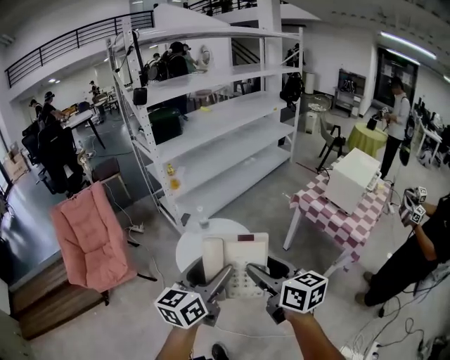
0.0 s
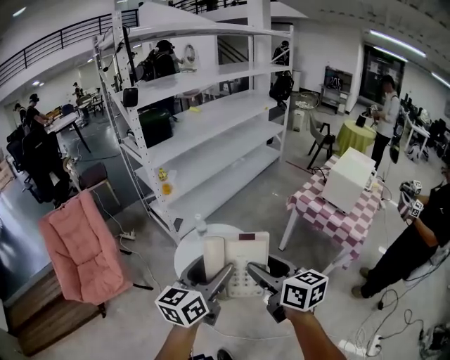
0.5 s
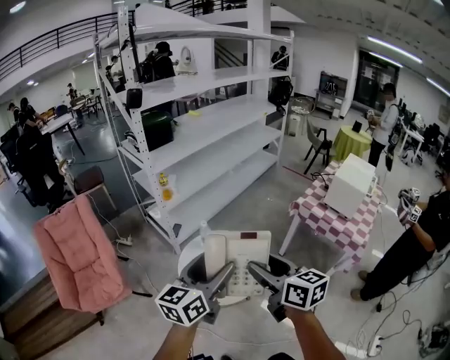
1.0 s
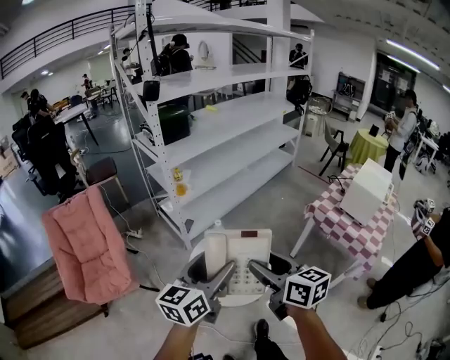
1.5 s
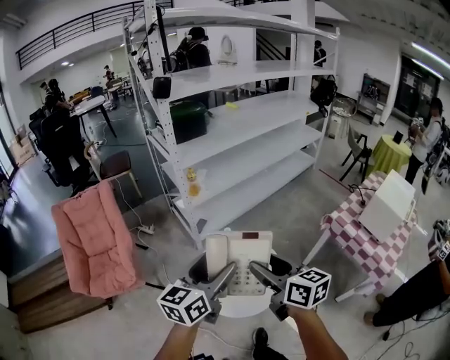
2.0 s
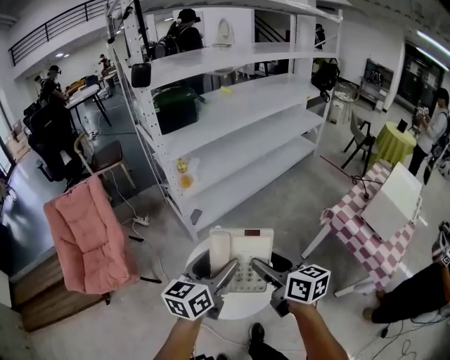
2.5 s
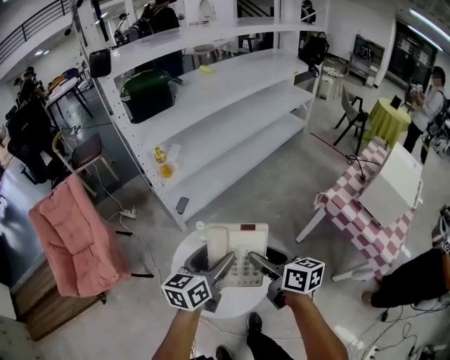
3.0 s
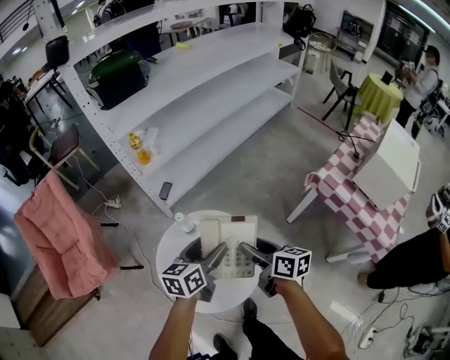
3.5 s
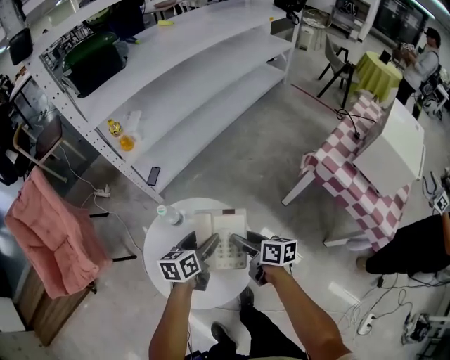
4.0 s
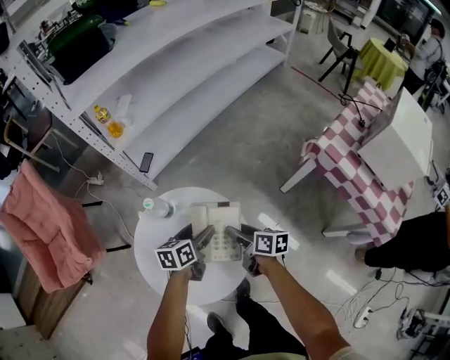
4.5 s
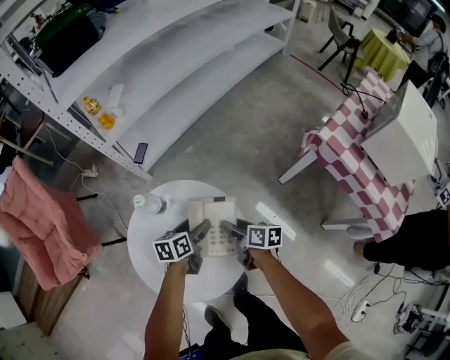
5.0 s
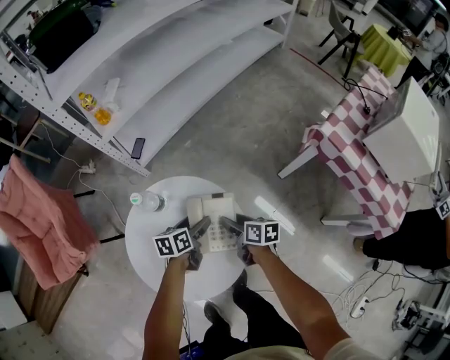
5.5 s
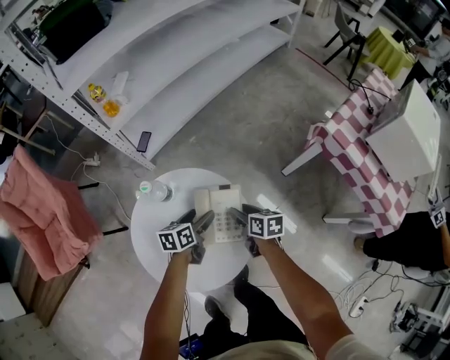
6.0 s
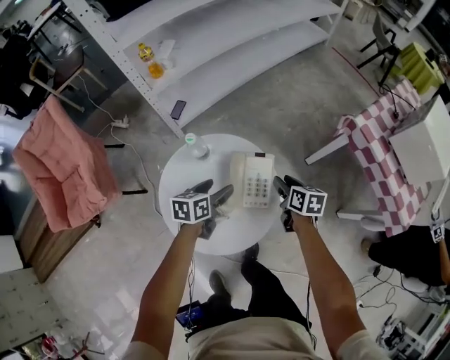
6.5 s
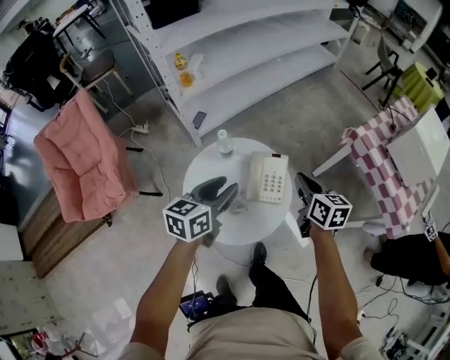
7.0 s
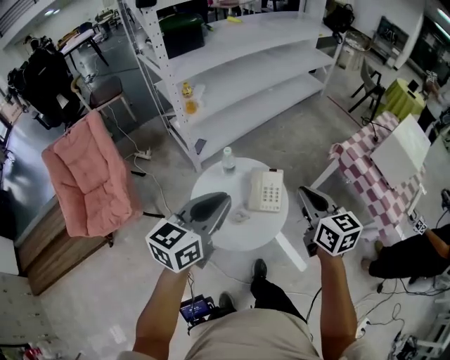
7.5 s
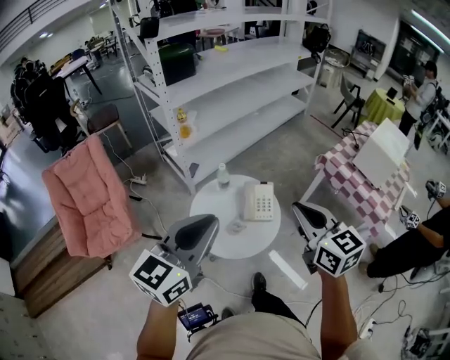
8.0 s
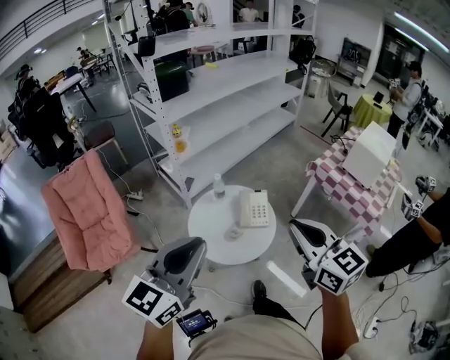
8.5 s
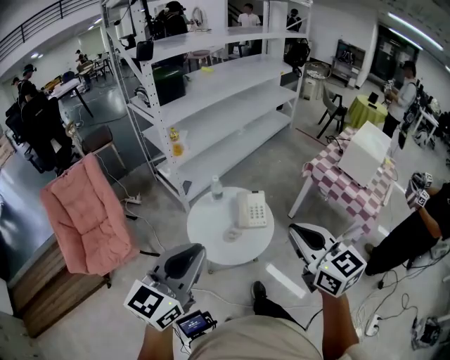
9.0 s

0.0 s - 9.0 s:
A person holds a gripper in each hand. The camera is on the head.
0.0 s - 2.0 s: The two grippers go approximately 25 cm forward and to the left.
2.0 s - 4.5 s: Both grippers move downward and forward, approximately 50 cm. The left gripper tilts its fingers approximately 30 degrees downward. The right gripper changes its angle by some 40 degrees.
4.5 s - 7.0 s: The right gripper moves upward, about 20 cm, changes its angle by about 30 degrees, and closes its fingers; the left gripper is displaced upward, backward and to the left by roughly 25 cm, swivels approximately 20 degrees, and closes up.
7.0 s - 9.0 s: Both grippers move backward and upward, some 40 cm. The left gripper swivels about 30 degrees, and closes up. Meanwhile the right gripper changes its angle by roughly 30 degrees.

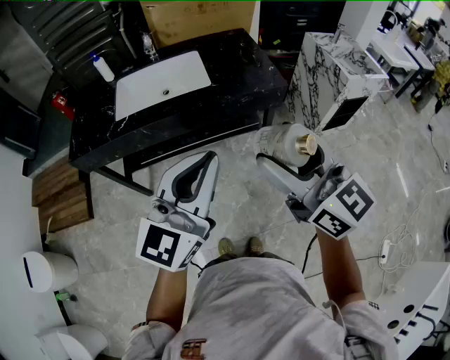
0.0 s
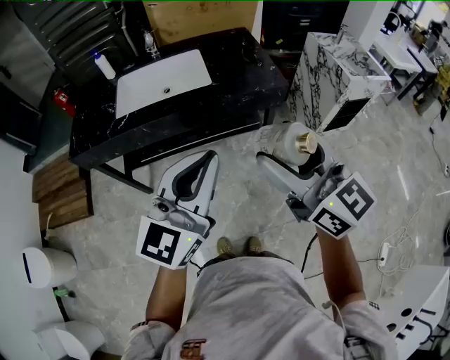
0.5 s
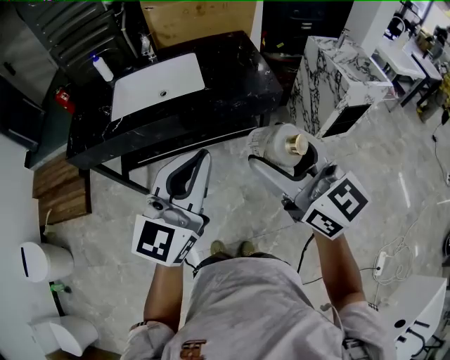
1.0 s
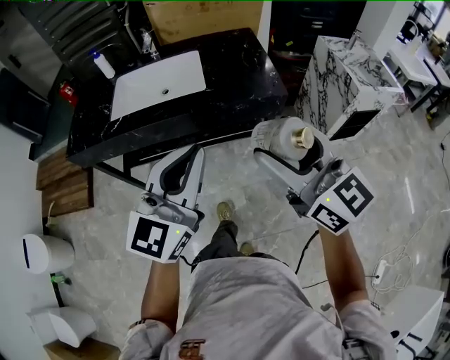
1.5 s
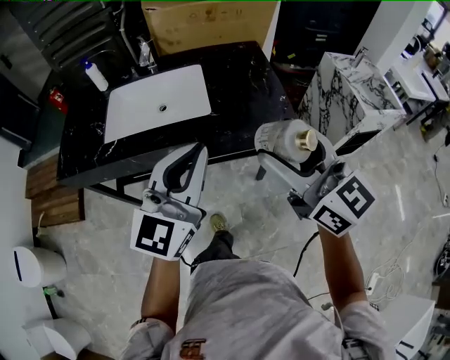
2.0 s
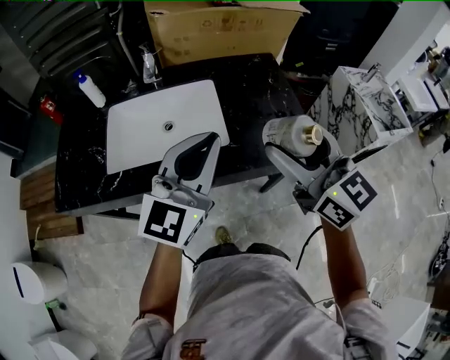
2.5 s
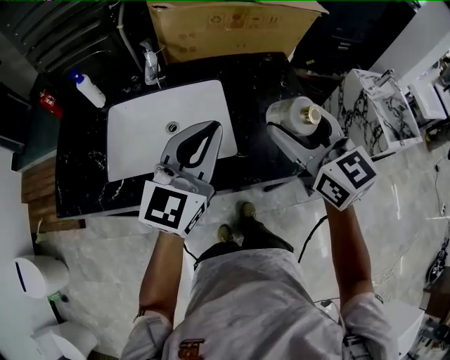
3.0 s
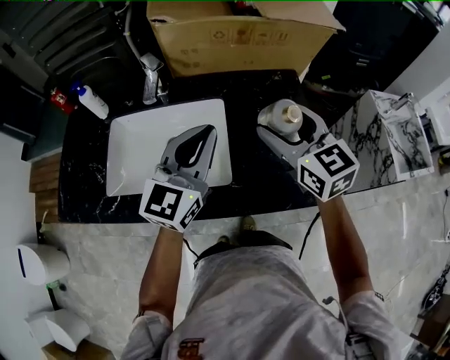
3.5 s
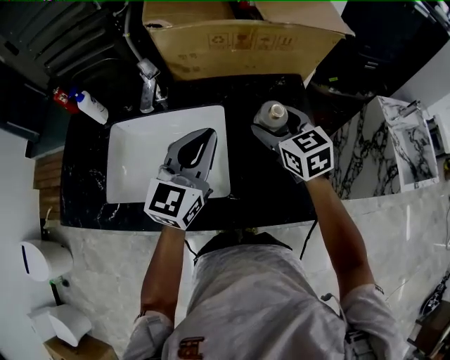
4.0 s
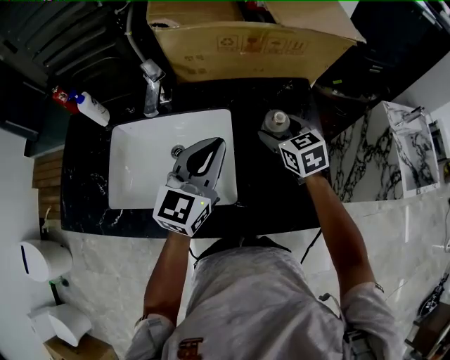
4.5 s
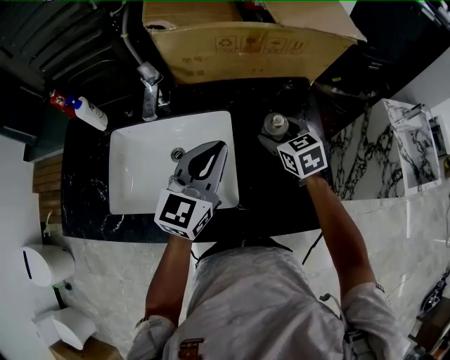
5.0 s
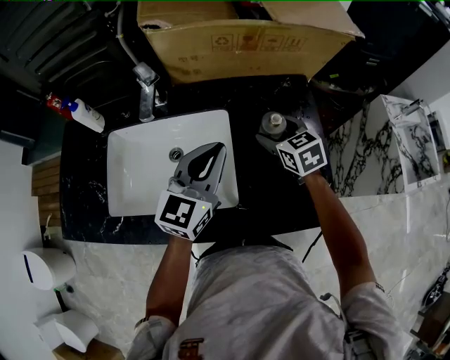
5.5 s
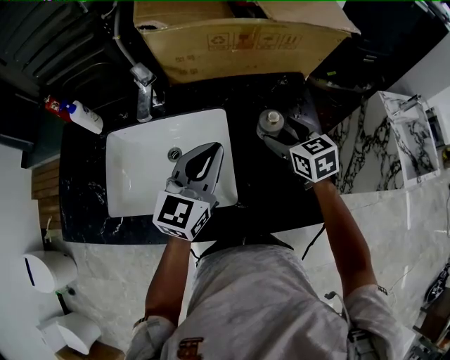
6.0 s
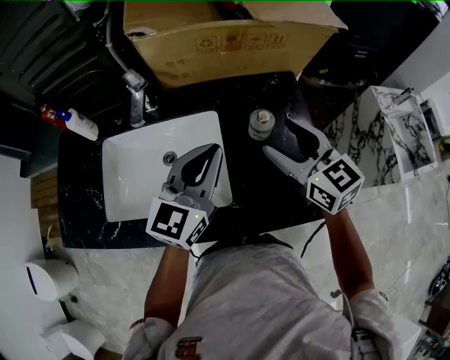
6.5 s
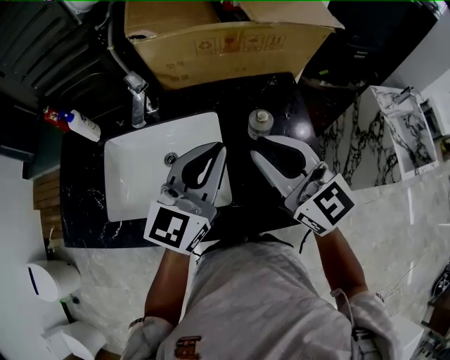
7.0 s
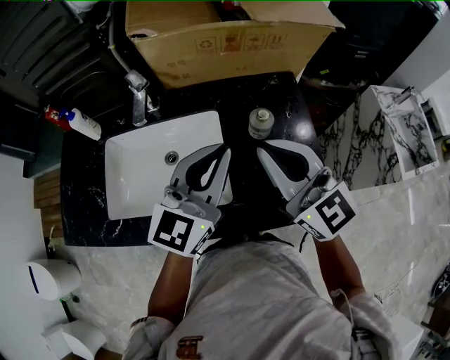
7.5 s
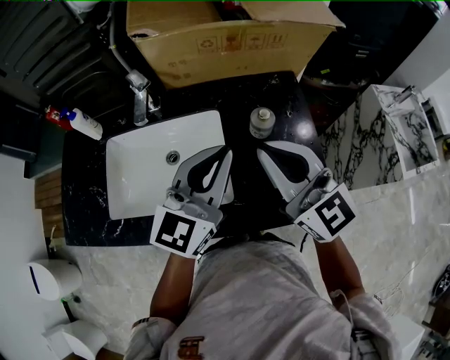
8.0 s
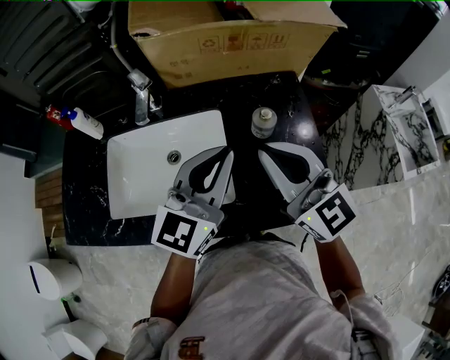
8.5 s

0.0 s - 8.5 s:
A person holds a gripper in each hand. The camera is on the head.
0.0 s - 2.0 s: Both grippers travel together forward, some 20 cm.
2.0 s - 4.0 s: Both grippers move forward, roughly 40 cm. The right gripper swivels roughly 30 degrees.
4.0 s - 6.5 s: The right gripper heads backward and upward, covering approximately 5 cm.
6.5 s - 8.5 s: The right gripper moves upward and backward, approximately 10 cm, and closes its fingers.

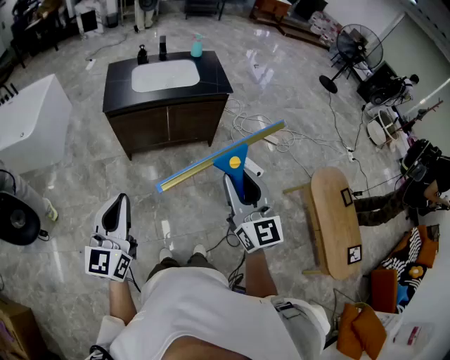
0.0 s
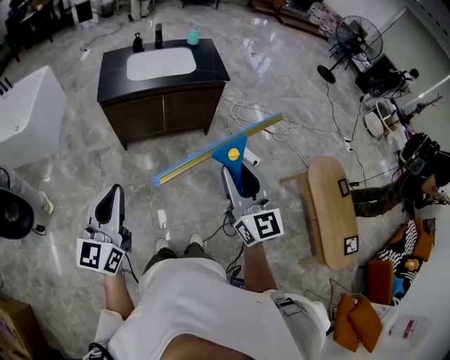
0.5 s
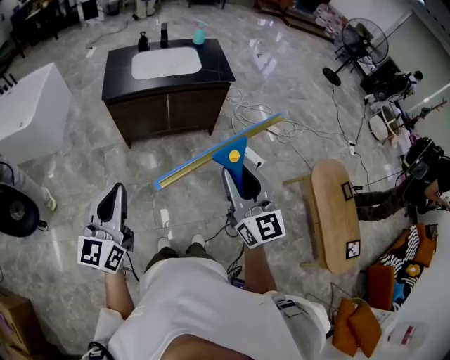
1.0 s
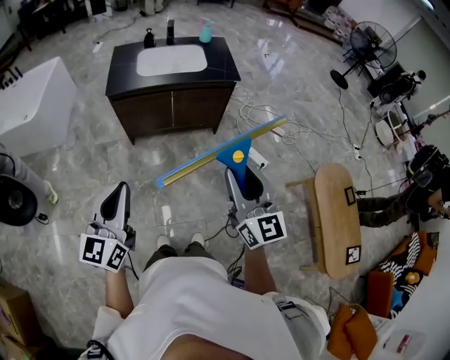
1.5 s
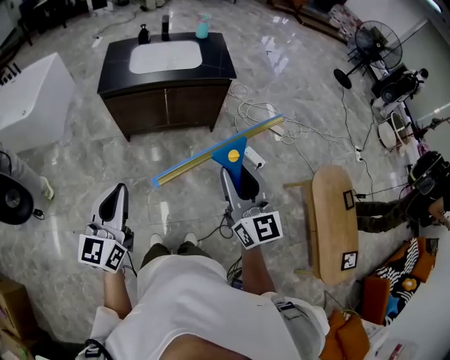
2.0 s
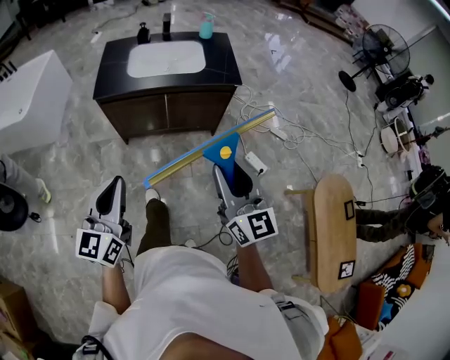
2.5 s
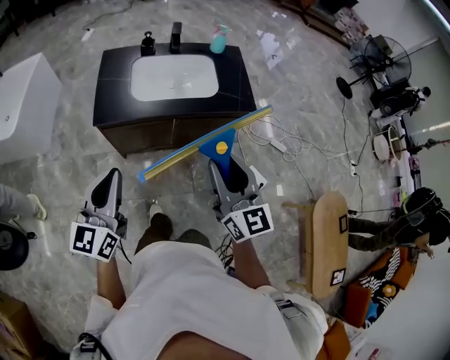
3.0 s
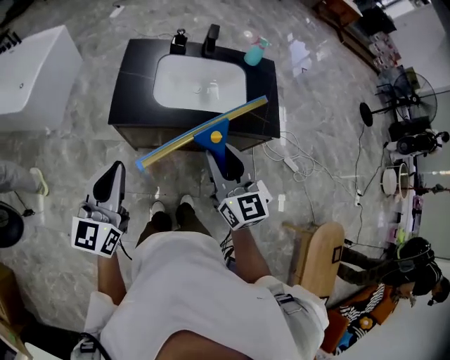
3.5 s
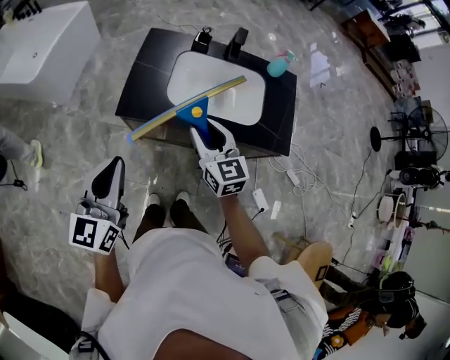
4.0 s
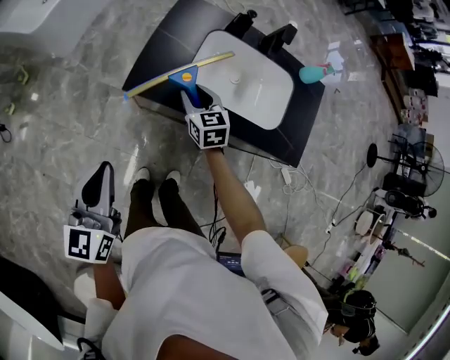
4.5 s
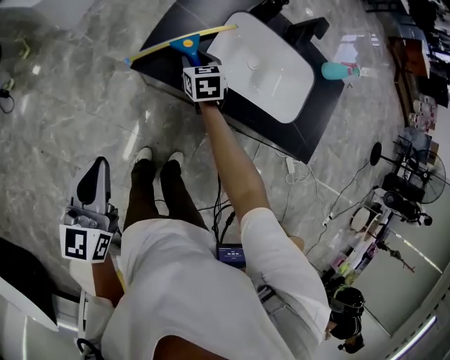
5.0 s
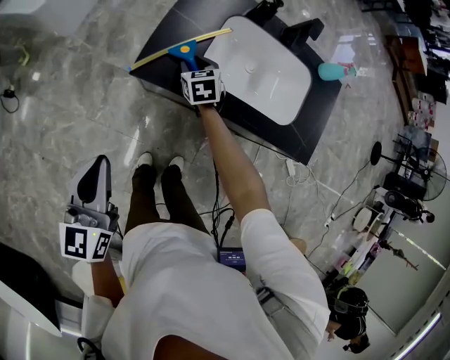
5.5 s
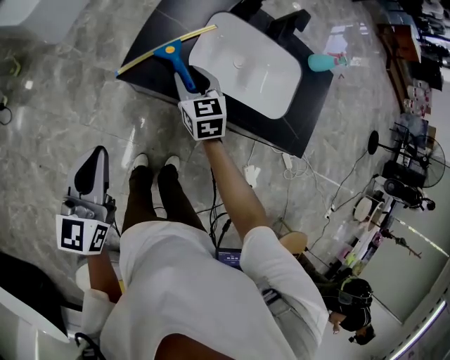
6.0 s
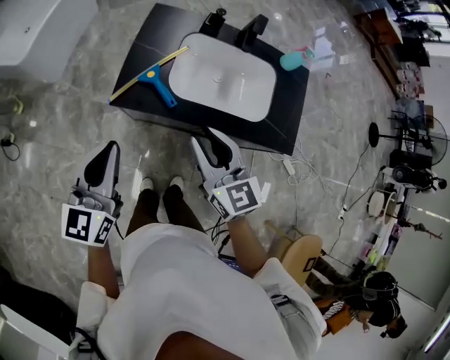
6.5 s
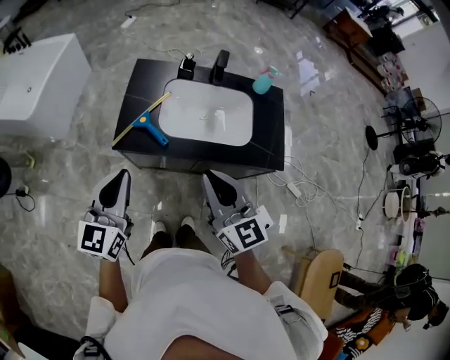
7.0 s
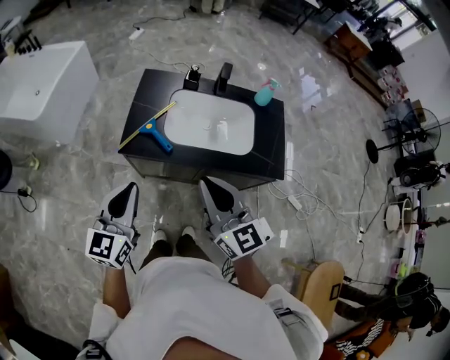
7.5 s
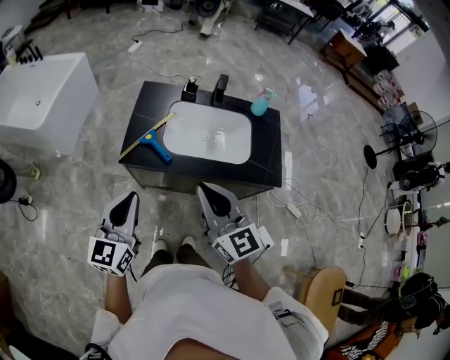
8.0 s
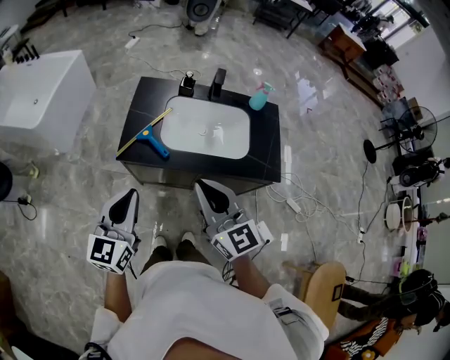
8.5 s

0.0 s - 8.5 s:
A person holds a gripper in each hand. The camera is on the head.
0.0 s - 2.0 s: Both grippers travel together to the right, about 5 cm.
2.0 s - 4.0 s: The pair of grippers is taken forward, about 60 cm. The right gripper swivels roughly 30 degrees.
4.0 s - 6.5 s: The right gripper travels downward and back again, approximately 25 cm each way. The left gripper travels forward by roughly 5 cm, and moves approximately 10 cm downward and comes back.
6.5 s - 8.5 s: The right gripper travels upward and backward by roughly 15 cm, and closes, while the left gripper shifts some 10 cm backward and to the right.

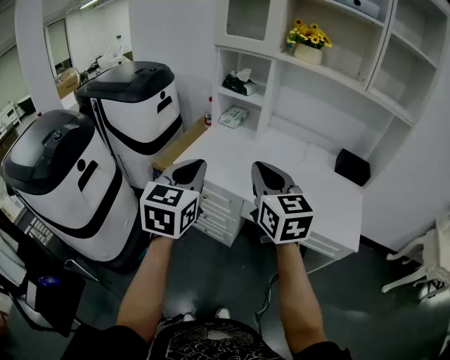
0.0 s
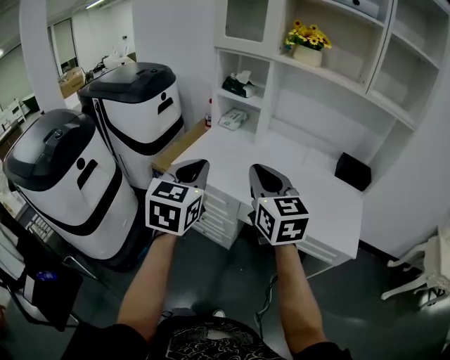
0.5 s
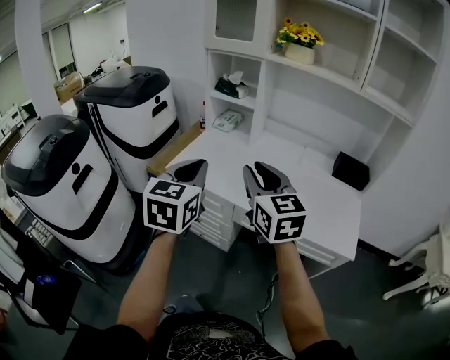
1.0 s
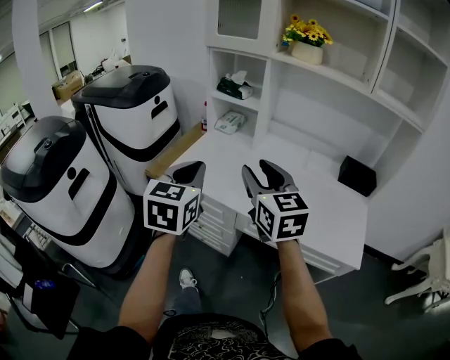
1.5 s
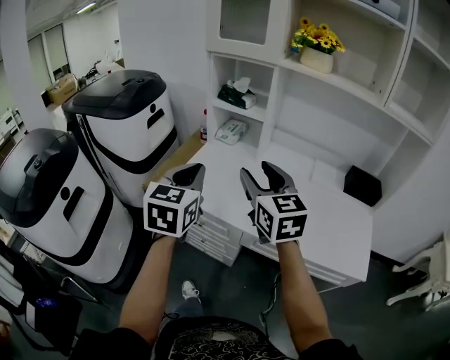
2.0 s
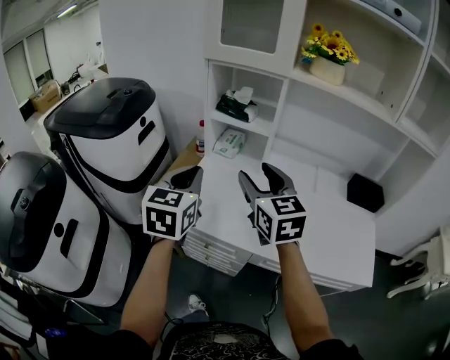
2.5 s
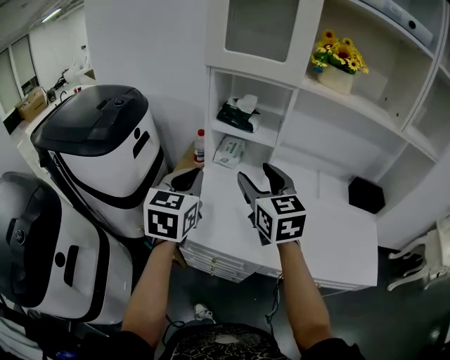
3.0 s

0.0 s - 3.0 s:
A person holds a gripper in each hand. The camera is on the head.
0.0 s - 1.5 s: Both grippers travel together forward, roughly 5 cm. The right gripper opens its fingers.
1.5 s - 3.0 s: The grippers both shift forward and to the left by some 25 cm.
